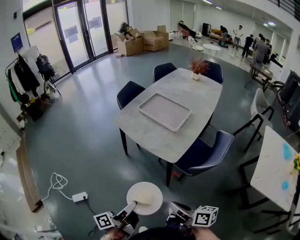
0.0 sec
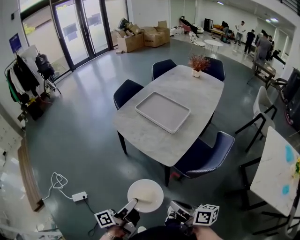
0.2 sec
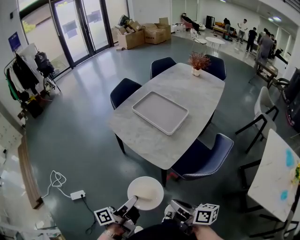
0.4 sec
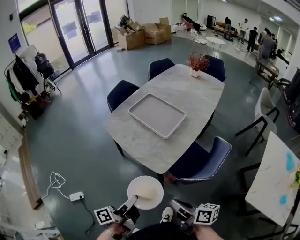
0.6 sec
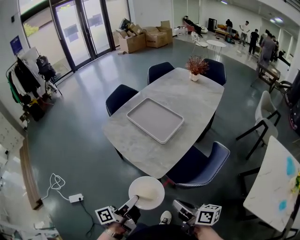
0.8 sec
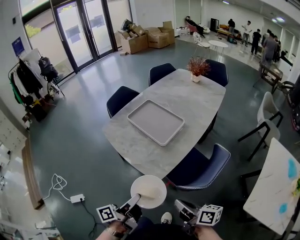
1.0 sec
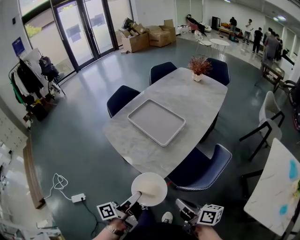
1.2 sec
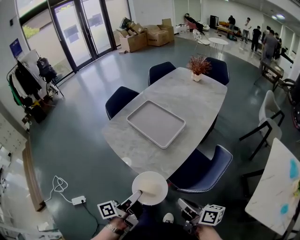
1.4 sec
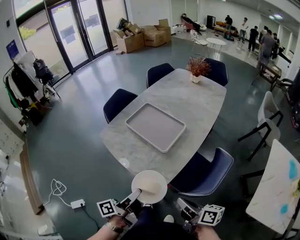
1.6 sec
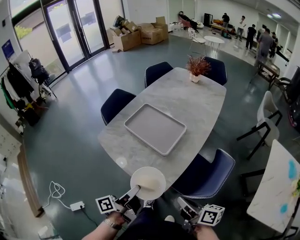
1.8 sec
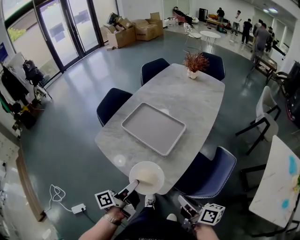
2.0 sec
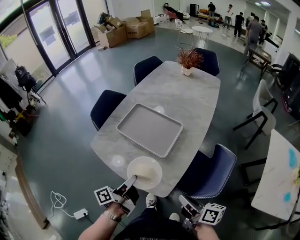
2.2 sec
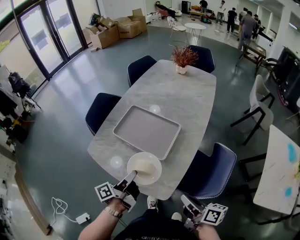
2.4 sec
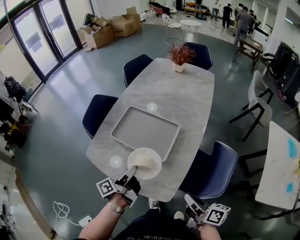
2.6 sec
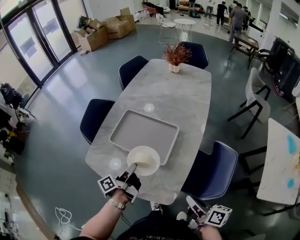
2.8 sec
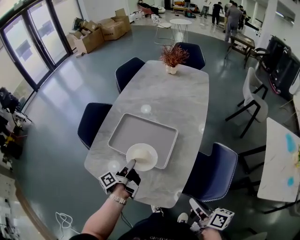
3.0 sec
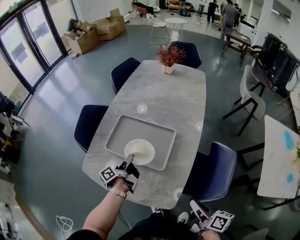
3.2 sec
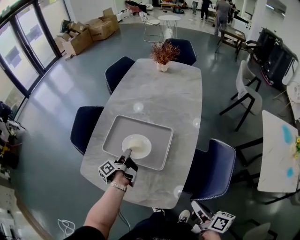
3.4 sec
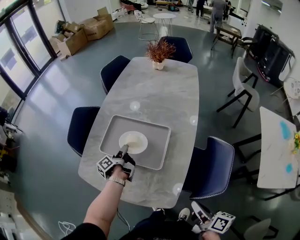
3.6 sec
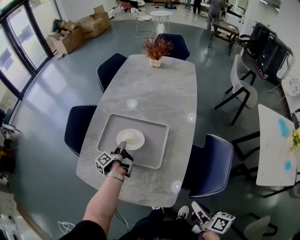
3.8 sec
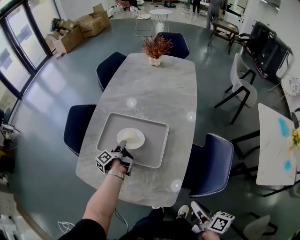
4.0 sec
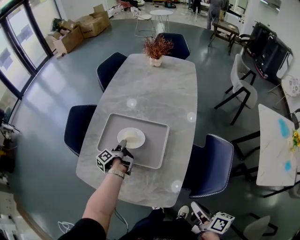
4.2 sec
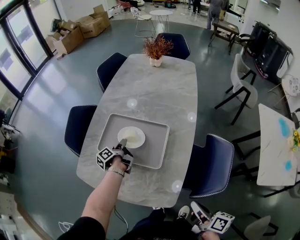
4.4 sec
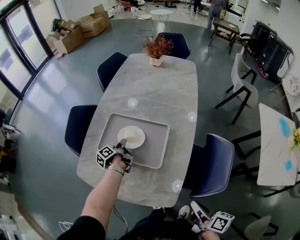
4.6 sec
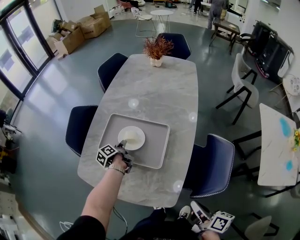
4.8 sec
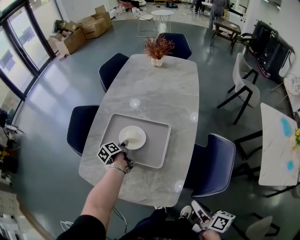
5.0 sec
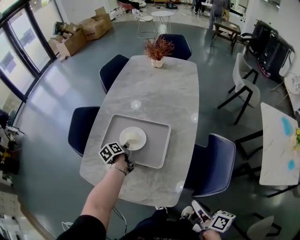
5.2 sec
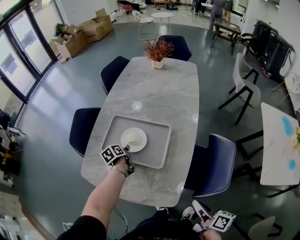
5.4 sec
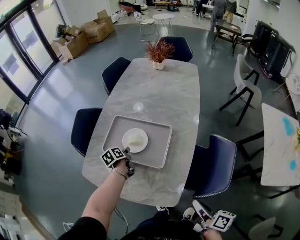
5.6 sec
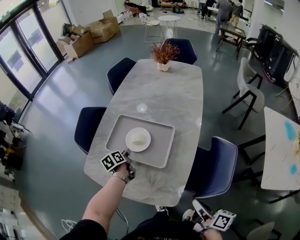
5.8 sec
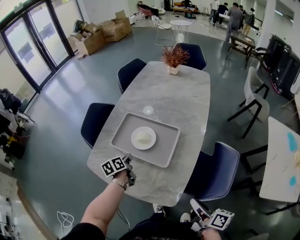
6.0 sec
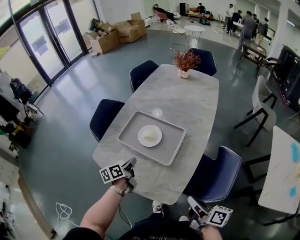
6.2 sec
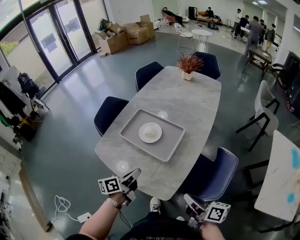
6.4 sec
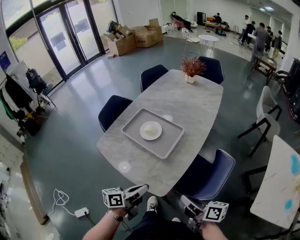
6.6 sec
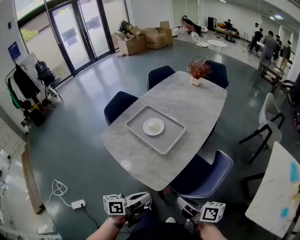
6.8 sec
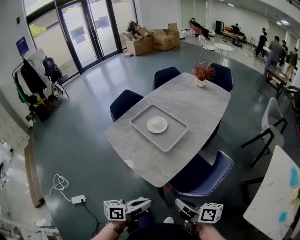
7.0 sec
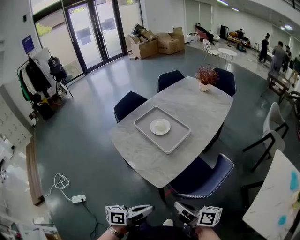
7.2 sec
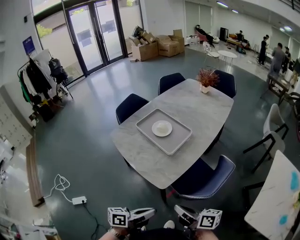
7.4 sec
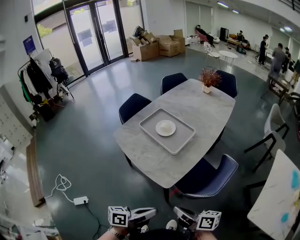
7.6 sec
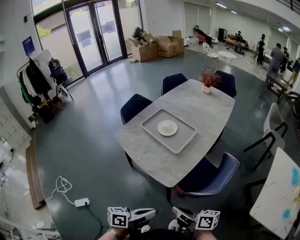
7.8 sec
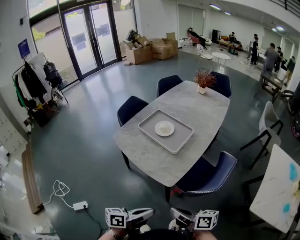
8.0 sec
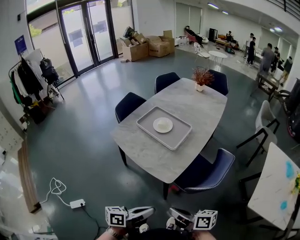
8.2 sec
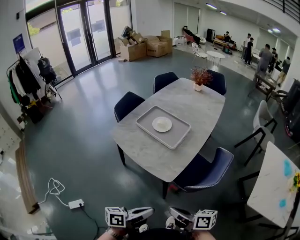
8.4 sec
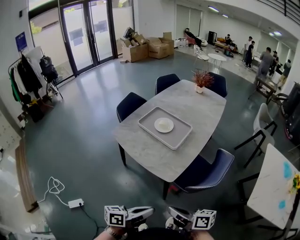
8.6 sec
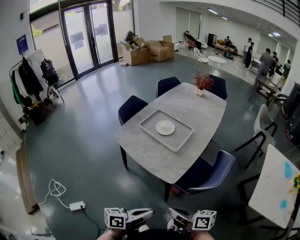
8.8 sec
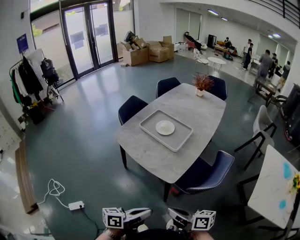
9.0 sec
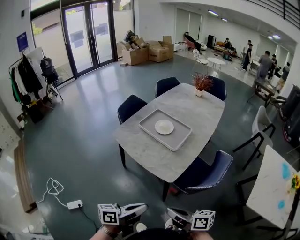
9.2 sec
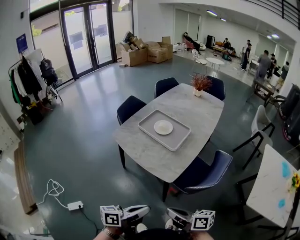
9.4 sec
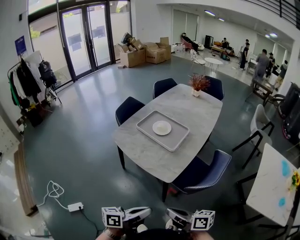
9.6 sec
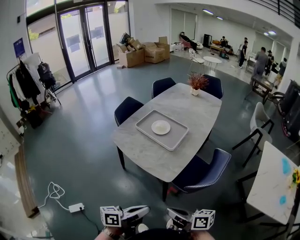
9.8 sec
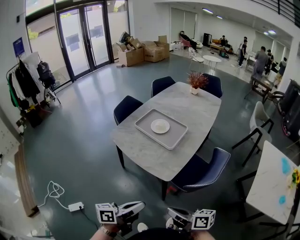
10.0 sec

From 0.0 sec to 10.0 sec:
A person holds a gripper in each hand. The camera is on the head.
From 0.0 sec to 1.4 sec: The right gripper changes place by about 25 cm.
From 1.4 sec to 2.8 sec: The right gripper changes place by roughly 10 cm, and swivels some 30 degrees.
From 5.8 sec to 7.2 sec: The right gripper ends up roughly 10 cm from where it was, and changes its angle by approximately 50 degrees.
From 7.2 sec to 8.6 sec: The right gripper moves some 15 cm.

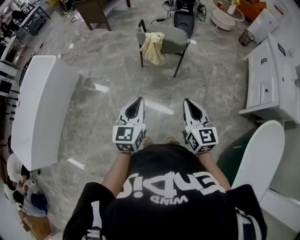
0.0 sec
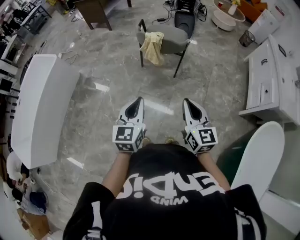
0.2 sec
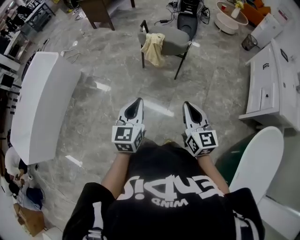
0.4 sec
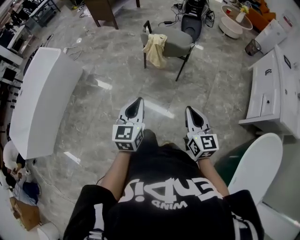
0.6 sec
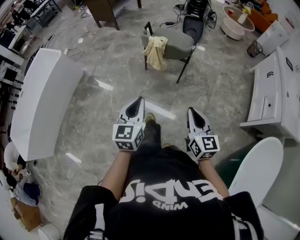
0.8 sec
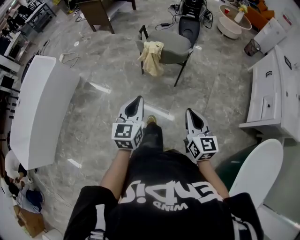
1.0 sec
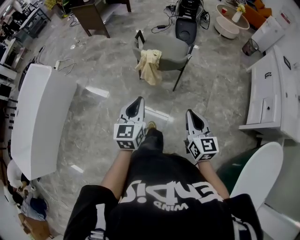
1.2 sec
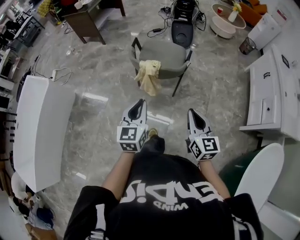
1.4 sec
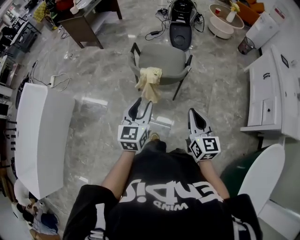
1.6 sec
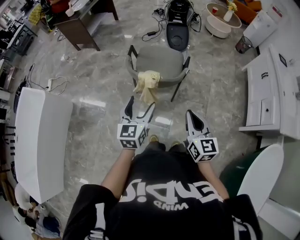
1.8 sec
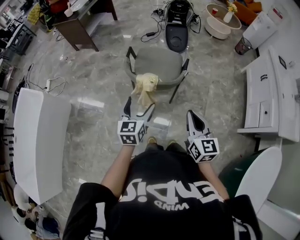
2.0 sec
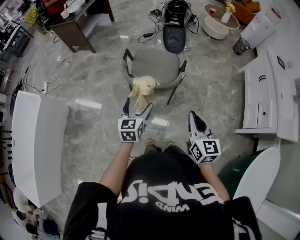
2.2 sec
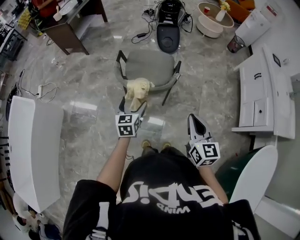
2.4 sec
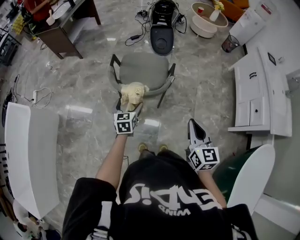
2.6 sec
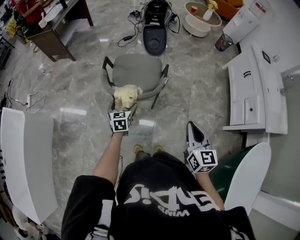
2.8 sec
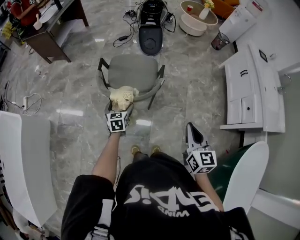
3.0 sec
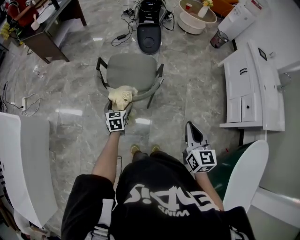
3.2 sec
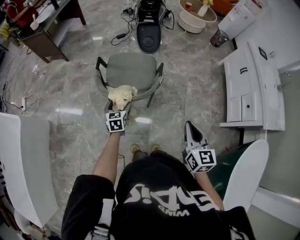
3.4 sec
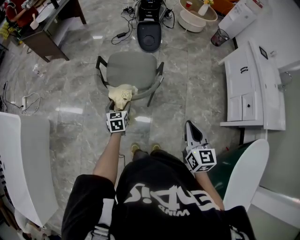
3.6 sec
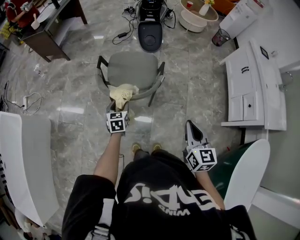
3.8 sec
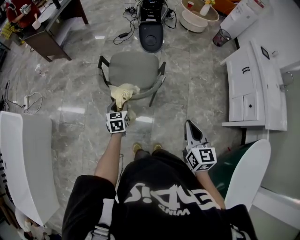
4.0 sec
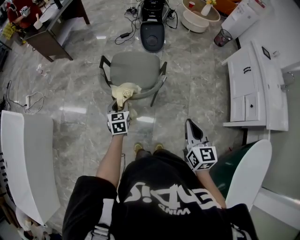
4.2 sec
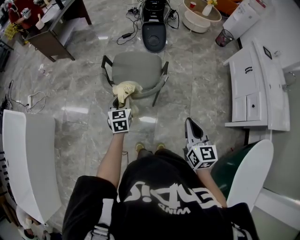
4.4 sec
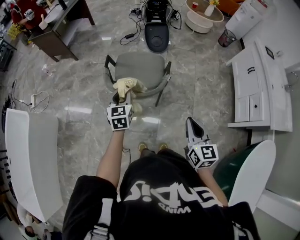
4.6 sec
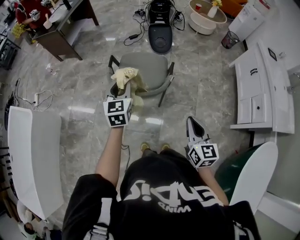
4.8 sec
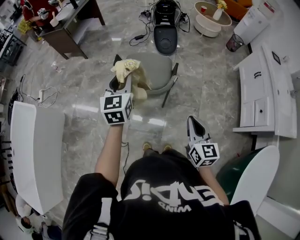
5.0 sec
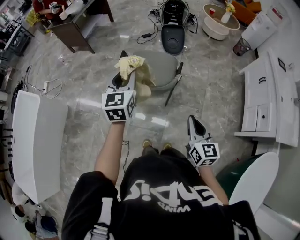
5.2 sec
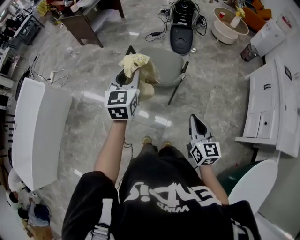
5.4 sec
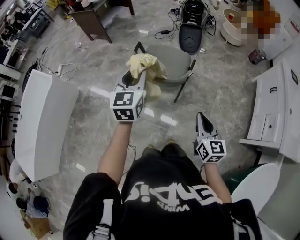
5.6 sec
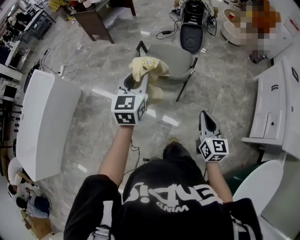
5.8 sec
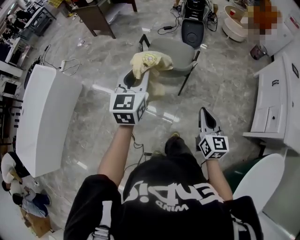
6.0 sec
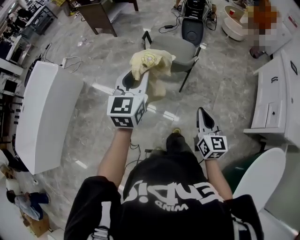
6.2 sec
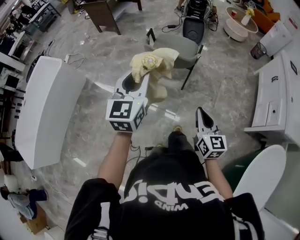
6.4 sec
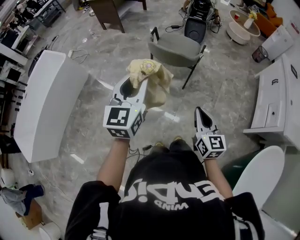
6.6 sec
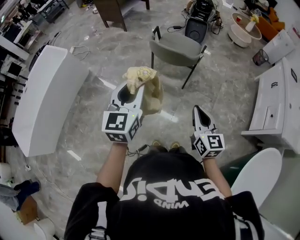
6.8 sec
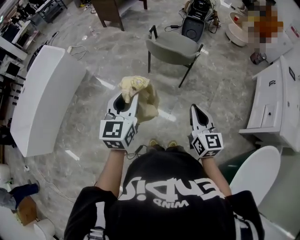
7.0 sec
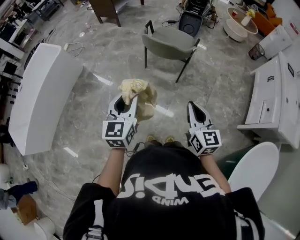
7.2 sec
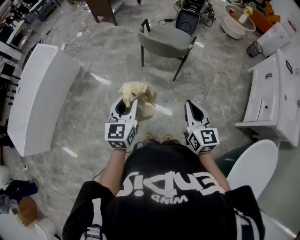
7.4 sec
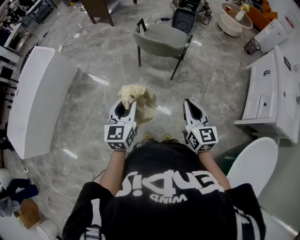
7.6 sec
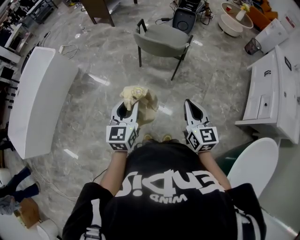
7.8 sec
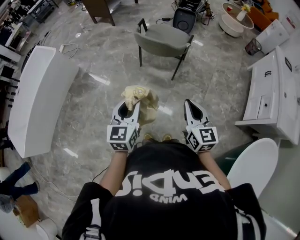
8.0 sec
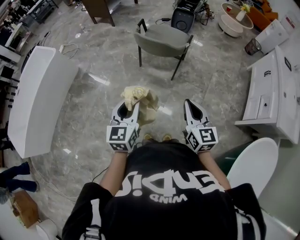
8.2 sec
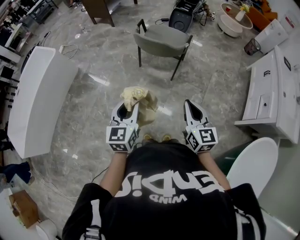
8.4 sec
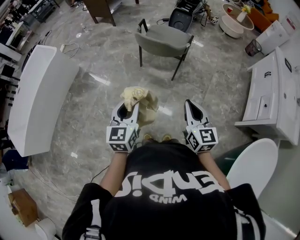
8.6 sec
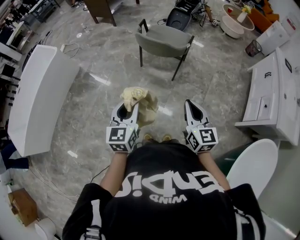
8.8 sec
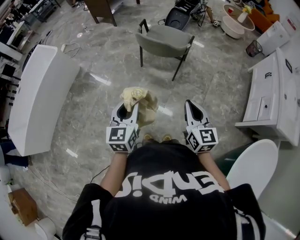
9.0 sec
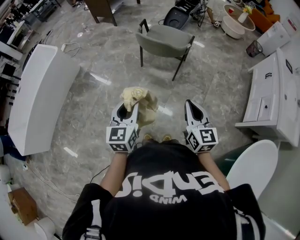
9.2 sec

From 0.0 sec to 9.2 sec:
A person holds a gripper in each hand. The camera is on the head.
From 0.0 sec to 1.6 sec: The two grippers go some 30 cm forward.
From 1.6 sec to 3.0 sec: The left gripper travels downward and forward by some 30 cm, changes its angle by some 20 degrees, and opens up, while the right gripper heads to the right and forward, covering some 10 cm.
From 3.0 sec to 4.6 sec: The left gripper goes roughly 15 cm upward, and closes.
From 4.6 sec to 6.2 sec: The right gripper shifts some 15 cm backward, while the left gripper moves backward and upward, some 30 cm.
From 6.2 sec to 7.6 sec: The right gripper is displaced backward by some 10 cm. The left gripper moves backward and downward, roughly 25 cm.
From 7.6 sec to 9.2 sec: There are only small adjustments of the grippers.

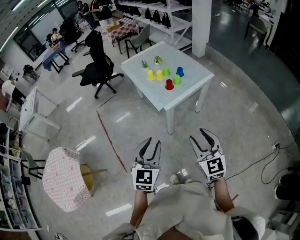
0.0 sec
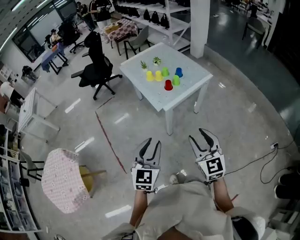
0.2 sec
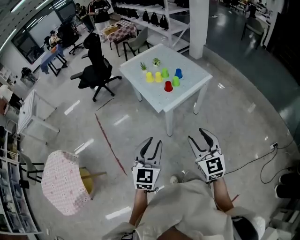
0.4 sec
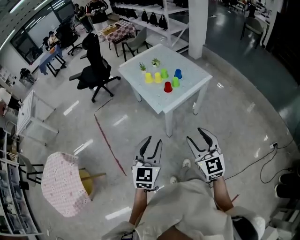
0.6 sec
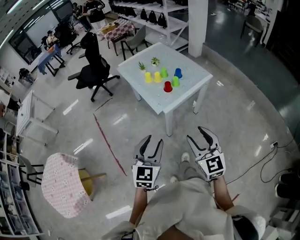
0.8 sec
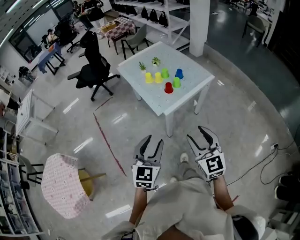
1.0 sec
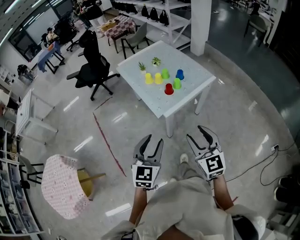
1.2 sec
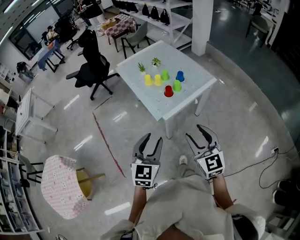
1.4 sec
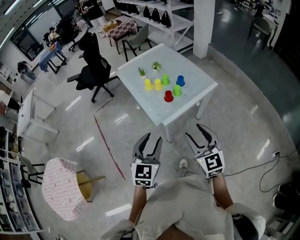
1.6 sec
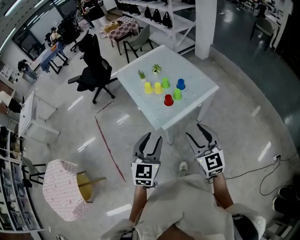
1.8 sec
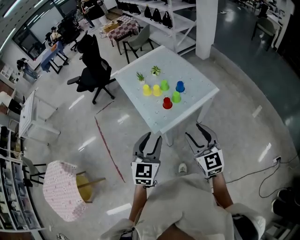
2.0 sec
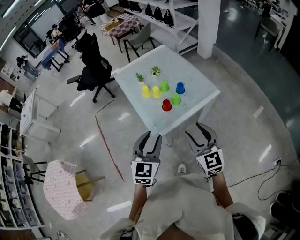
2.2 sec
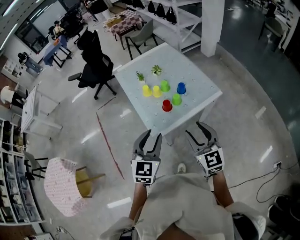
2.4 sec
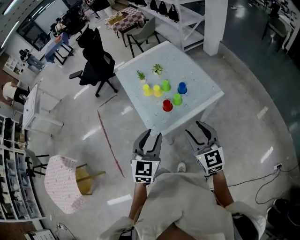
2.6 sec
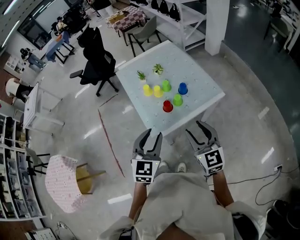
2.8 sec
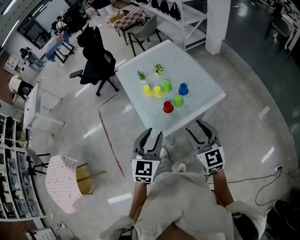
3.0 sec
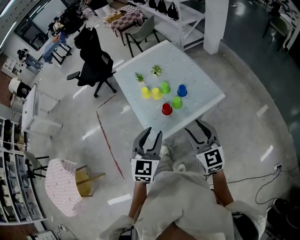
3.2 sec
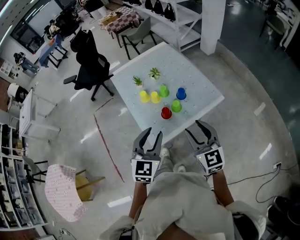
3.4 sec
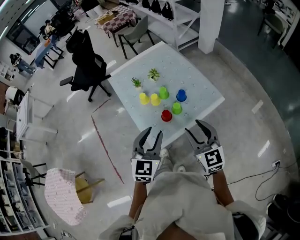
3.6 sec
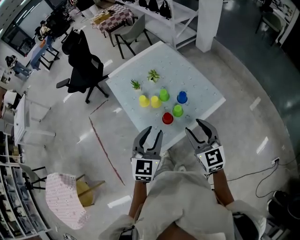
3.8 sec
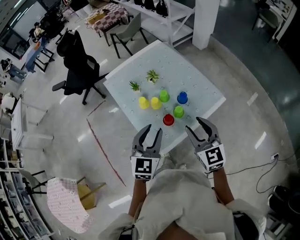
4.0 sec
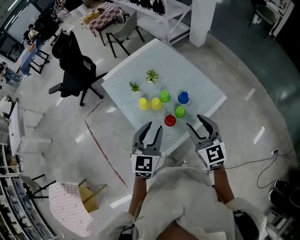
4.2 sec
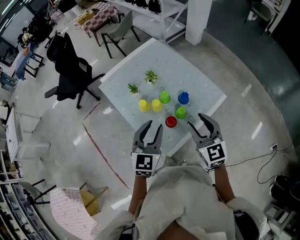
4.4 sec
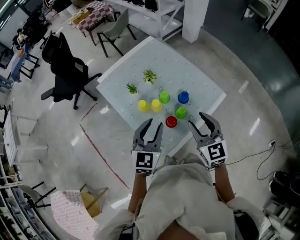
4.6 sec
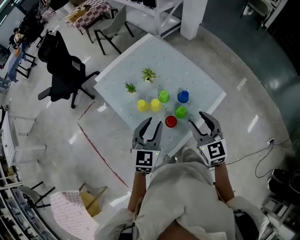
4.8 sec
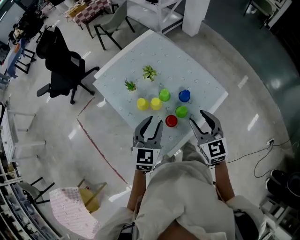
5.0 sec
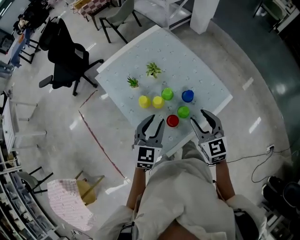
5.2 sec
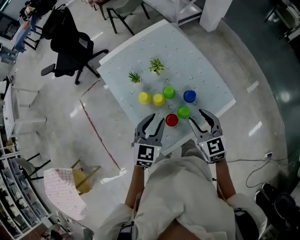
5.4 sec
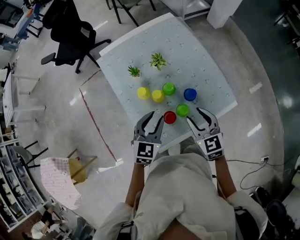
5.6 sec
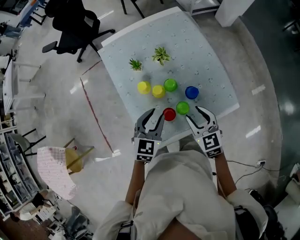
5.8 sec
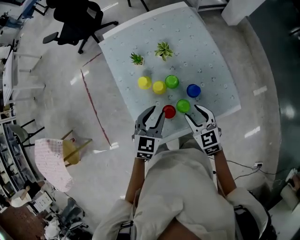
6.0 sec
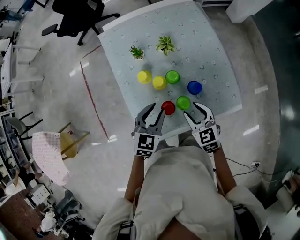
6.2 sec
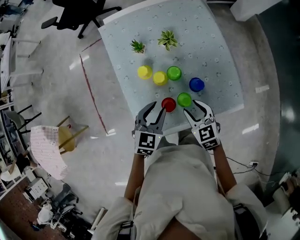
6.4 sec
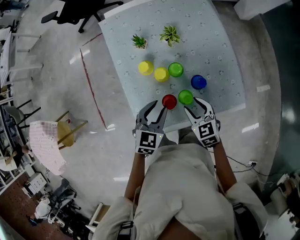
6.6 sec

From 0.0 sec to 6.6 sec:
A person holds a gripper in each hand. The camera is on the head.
From 0.0 sec to 1.6 sec: Both grippers move forward, roughly 15 cm.
From 1.6 sec to 3.2 sec: The two grippers go roughly 20 cm forward and to the right.
From 3.2 sec to 5.0 sec: Both grippers travel together forward, about 20 cm.
From 5.0 sec to 6.6 sec: The two grippers go roughly 15 cm downward. The left gripper swivels some 30 degrees, while the right gripper turns by approximately 40 degrees.
